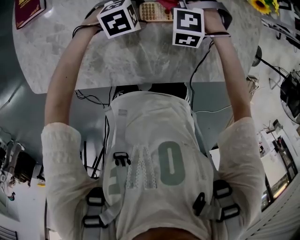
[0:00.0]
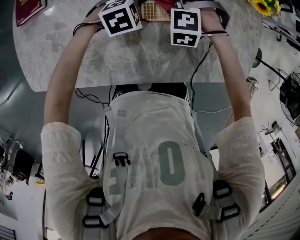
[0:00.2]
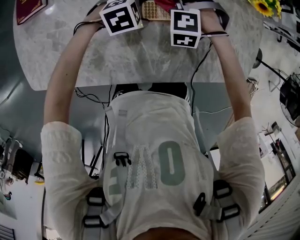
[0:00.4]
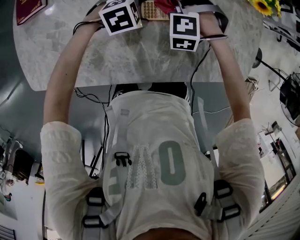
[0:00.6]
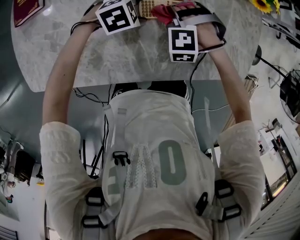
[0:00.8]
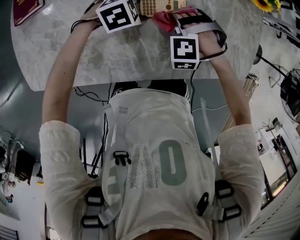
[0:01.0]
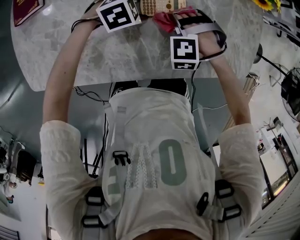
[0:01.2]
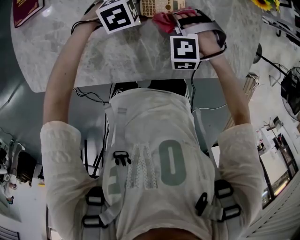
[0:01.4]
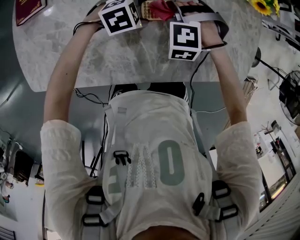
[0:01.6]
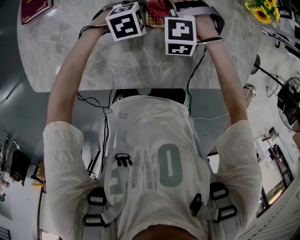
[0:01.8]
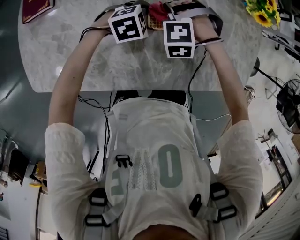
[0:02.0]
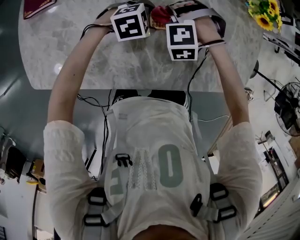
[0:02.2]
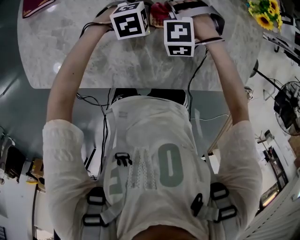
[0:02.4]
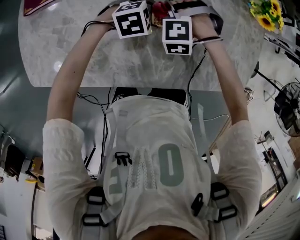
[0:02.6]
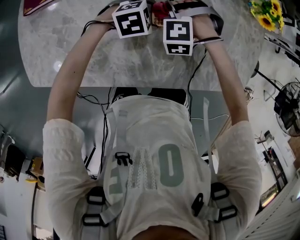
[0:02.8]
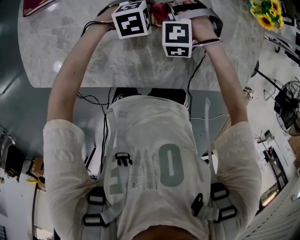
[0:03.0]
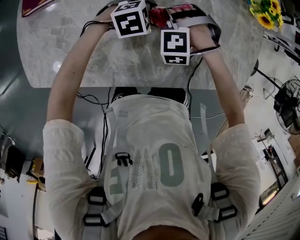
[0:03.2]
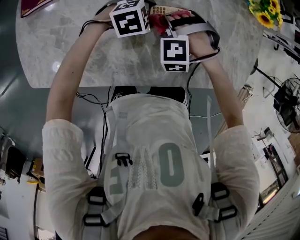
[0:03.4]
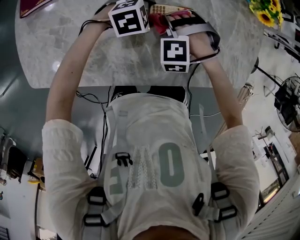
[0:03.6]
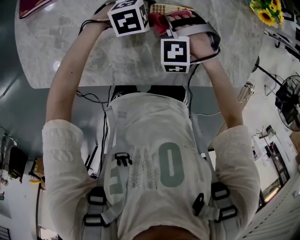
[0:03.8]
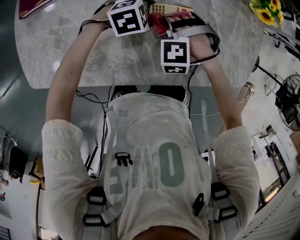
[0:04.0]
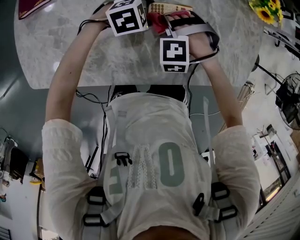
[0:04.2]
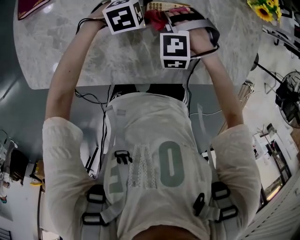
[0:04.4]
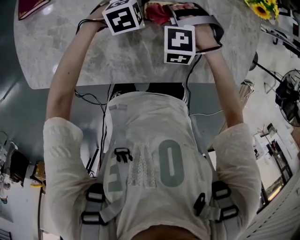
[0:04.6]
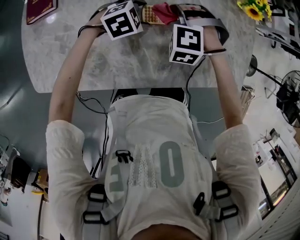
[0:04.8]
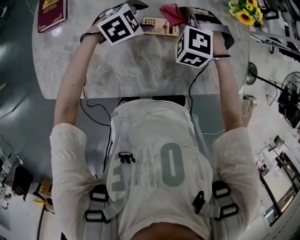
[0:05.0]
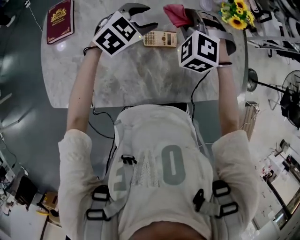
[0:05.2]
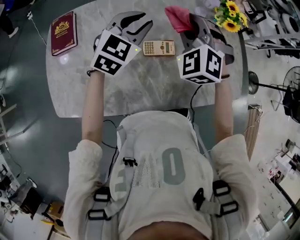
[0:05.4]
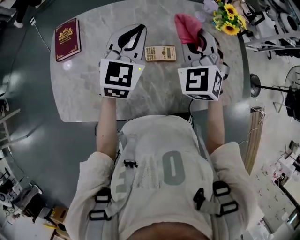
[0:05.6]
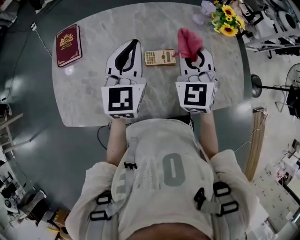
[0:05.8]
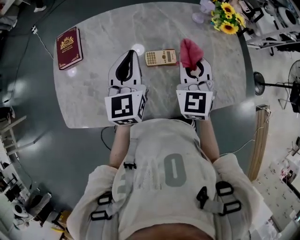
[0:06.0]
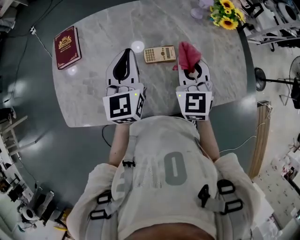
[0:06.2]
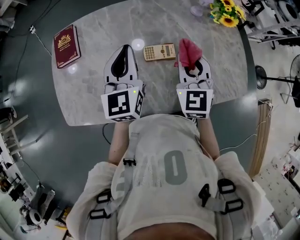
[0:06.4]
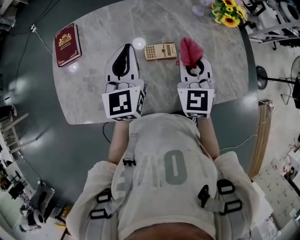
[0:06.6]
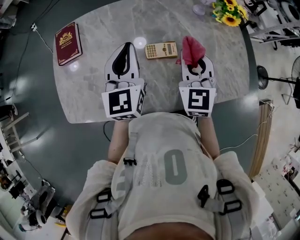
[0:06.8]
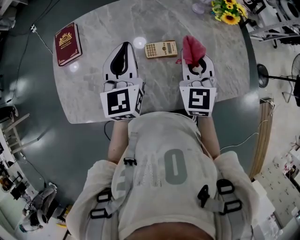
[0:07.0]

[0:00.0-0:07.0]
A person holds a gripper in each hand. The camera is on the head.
0:00.0 to 0:01.4: The right gripper shifts approximately 10 cm backward and to the right.
0:01.4 to 0:02.8: The right gripper heads to the left, covering approximately 10 cm.
0:02.8 to 0:04.2: The right gripper ends up some 5 cm from where it was.
0:04.2 to 0:05.6: The two grippers go approximately 30 cm upward. The left gripper angles its fingers upward, by some 40 degrees, and closes up; the right gripper tilts its fingers about 50 degrees upward.
0:05.6 to 0:07.0: The left gripper ends up approximately 5 cm from where it was, and changes its angle by about 20 degrees, while the right gripper goes some 10 cm backward and downward, and rotates about 30 degrees.

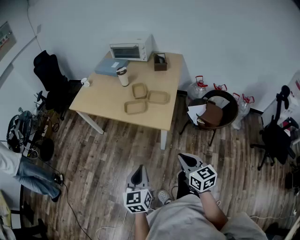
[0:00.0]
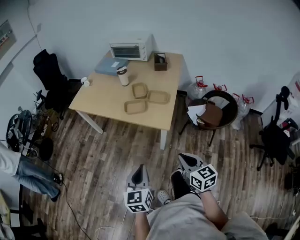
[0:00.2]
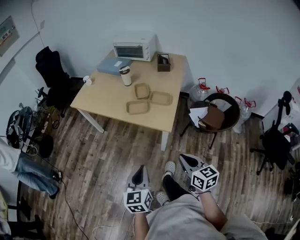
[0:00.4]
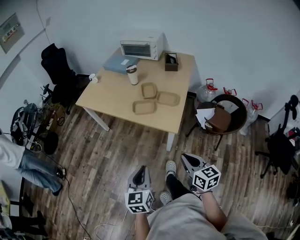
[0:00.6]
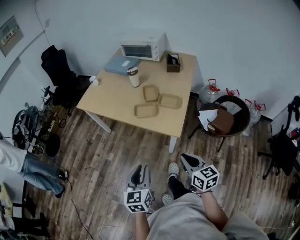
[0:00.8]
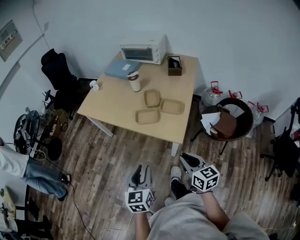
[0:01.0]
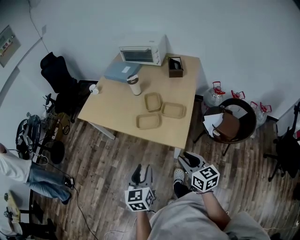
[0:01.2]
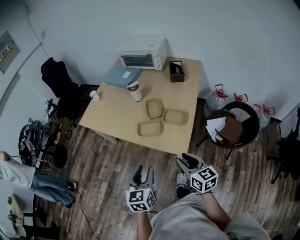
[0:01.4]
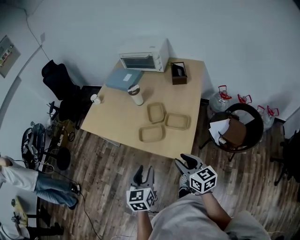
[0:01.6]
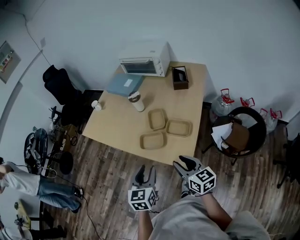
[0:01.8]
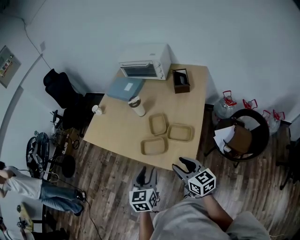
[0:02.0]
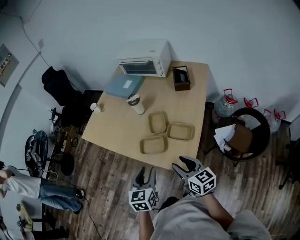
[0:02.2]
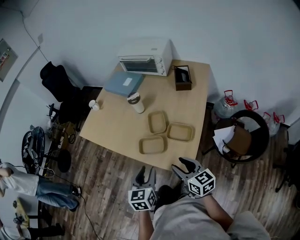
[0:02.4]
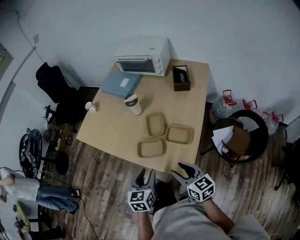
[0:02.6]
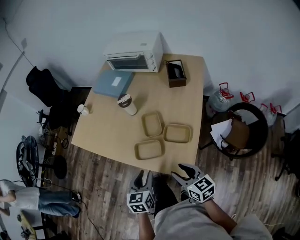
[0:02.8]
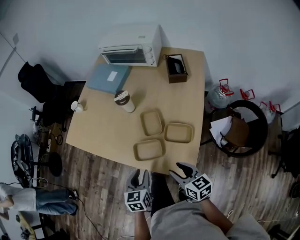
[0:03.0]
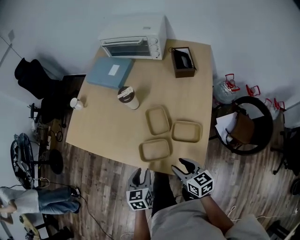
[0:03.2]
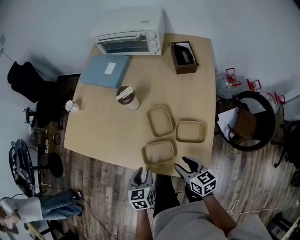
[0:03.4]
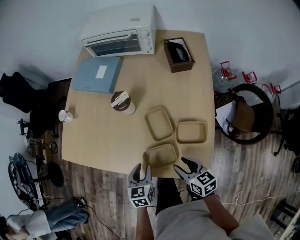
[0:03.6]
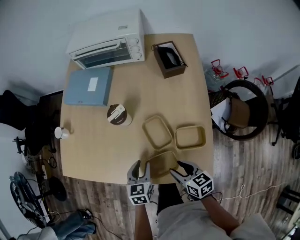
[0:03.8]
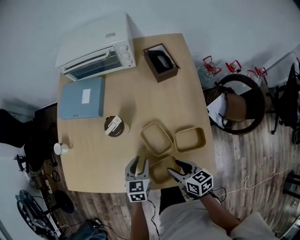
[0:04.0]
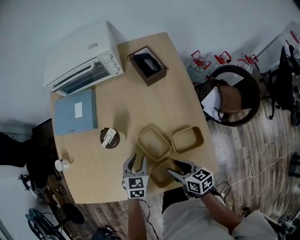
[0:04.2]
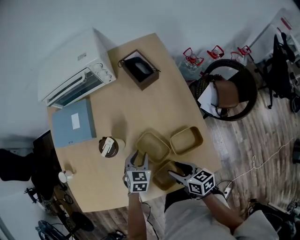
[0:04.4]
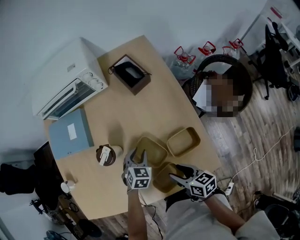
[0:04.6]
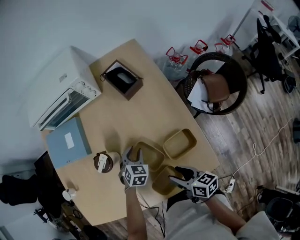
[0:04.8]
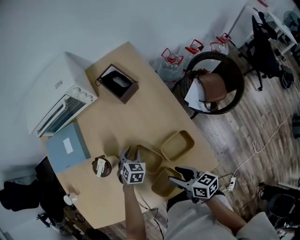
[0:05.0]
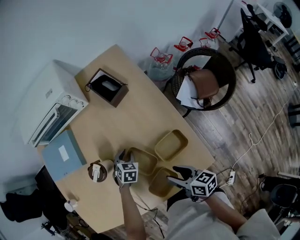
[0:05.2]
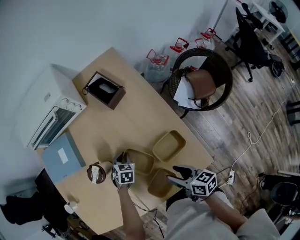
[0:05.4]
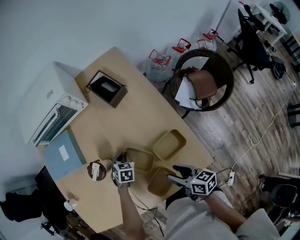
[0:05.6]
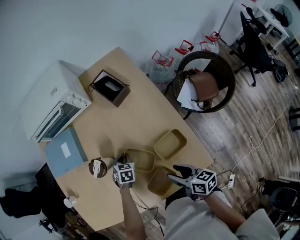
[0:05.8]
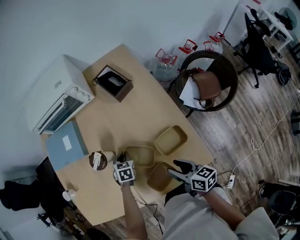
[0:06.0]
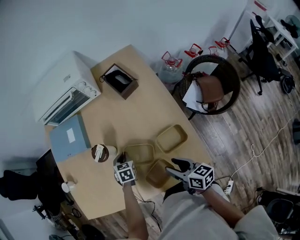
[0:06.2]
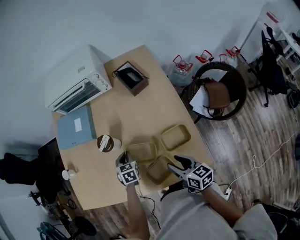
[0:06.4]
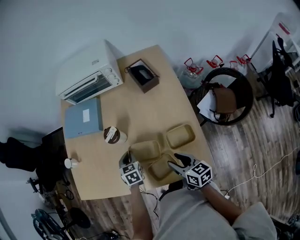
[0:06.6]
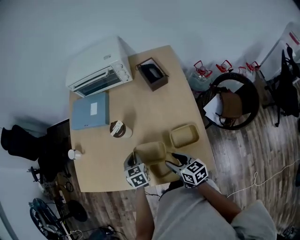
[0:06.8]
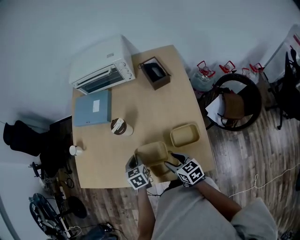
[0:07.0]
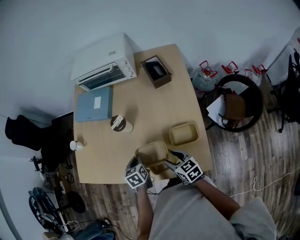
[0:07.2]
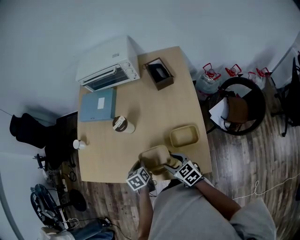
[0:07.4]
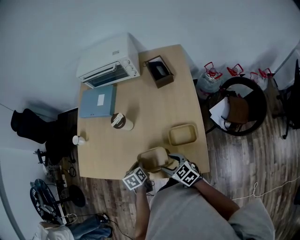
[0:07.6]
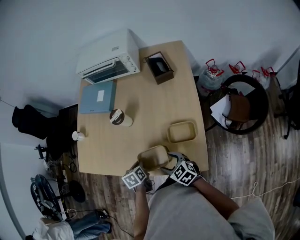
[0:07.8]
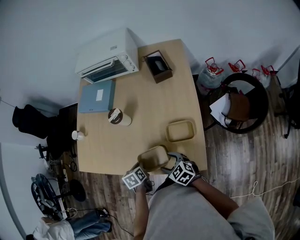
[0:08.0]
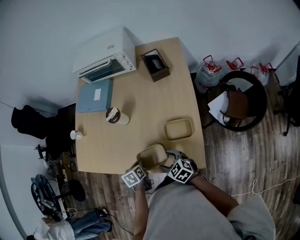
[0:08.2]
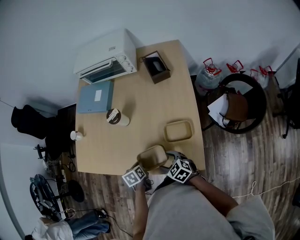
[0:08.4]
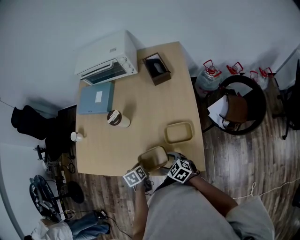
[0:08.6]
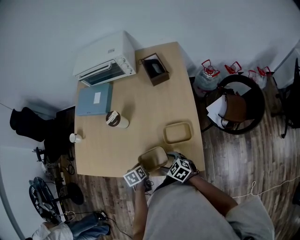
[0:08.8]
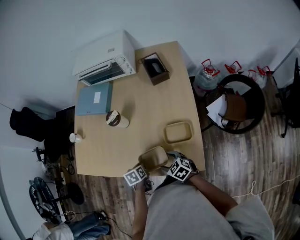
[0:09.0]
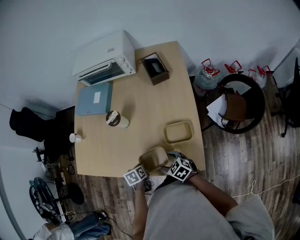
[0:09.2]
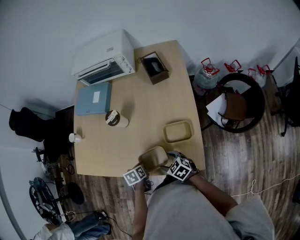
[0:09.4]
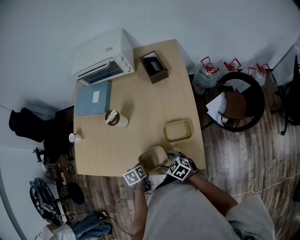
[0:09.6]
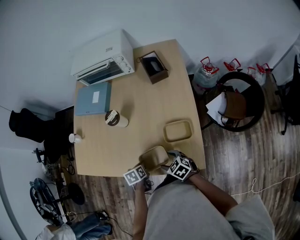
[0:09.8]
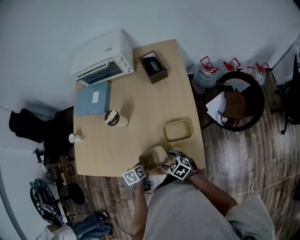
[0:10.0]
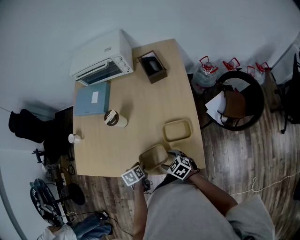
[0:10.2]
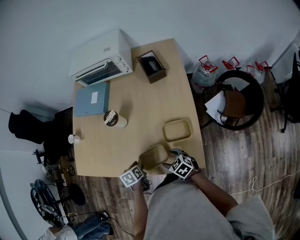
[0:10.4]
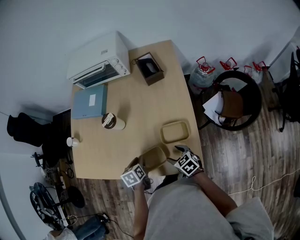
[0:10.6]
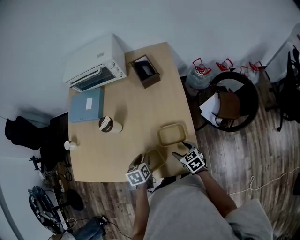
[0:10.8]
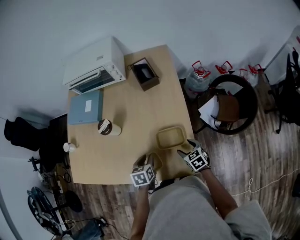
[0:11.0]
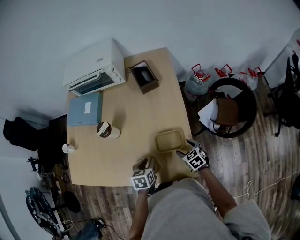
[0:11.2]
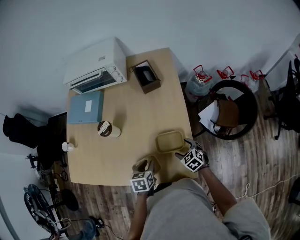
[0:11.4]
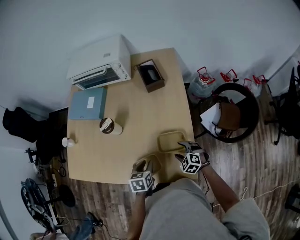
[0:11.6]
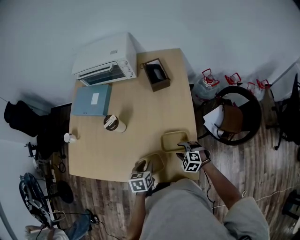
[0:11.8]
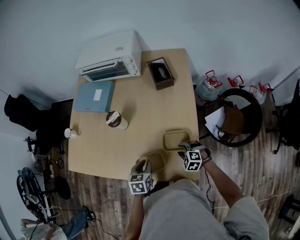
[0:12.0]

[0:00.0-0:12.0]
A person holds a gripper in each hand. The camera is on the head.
0:00.0 to 0:01.6: The grippers both shift forward by roughly 25 cm. The right gripper opens, while the left gripper opens its fingers.
0:01.6 to 0:03.0: Both grippers move forward and downward, approximately 20 cm.
0:03.0 to 0:04.4: The left gripper changes place by approximately 30 cm, and turns by some 50 degrees; the right gripper moves roughly 20 cm, and turns by roughly 30 degrees.
0:04.4 to 0:06.0: The left gripper closes up. Meanwhile the right gripper moves to the right, some 5 cm.
0:06.0 to 0:07.6: The left gripper ends up approximately 20 cm from where it was, and twists some 50 degrees counterclockwise, seen from behind; the right gripper ends up roughly 10 cm from where it was, and twists about 50 degrees counterclockwise, seen from behind.
0:07.6 to 0:09.0: The grippers both shift downward by approximately 5 cm.
0:09.0 to 0:10.4: The left gripper opens.
0:10.4 to 0:12.0: The left gripper moves to the right and upward, about 10 cm, and rotates roughly 20 degrees. Meanwhile the right gripper goes approximately 10 cm to the right and forward, turns by approximately 40 degrees, and closes.

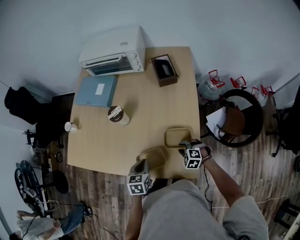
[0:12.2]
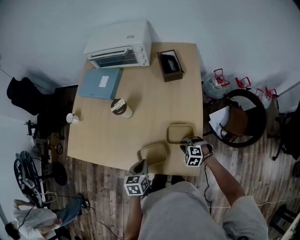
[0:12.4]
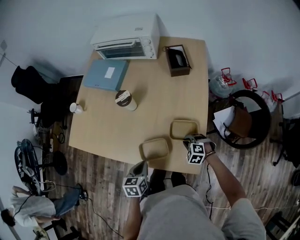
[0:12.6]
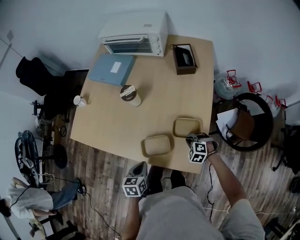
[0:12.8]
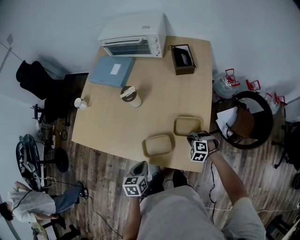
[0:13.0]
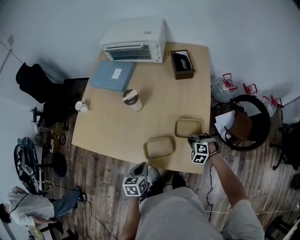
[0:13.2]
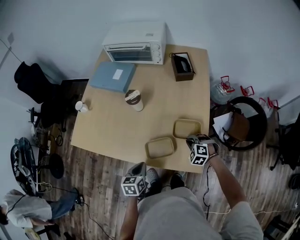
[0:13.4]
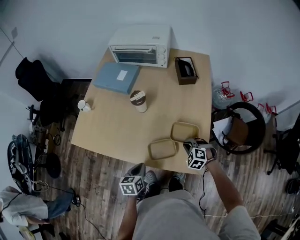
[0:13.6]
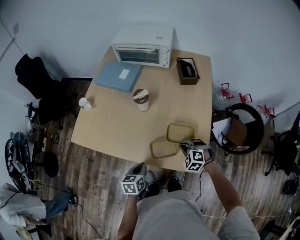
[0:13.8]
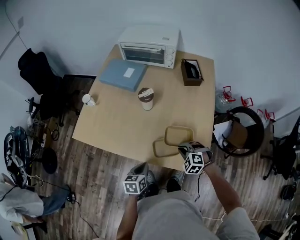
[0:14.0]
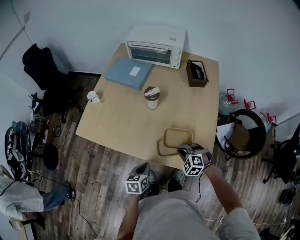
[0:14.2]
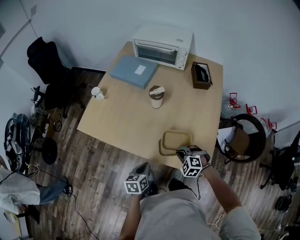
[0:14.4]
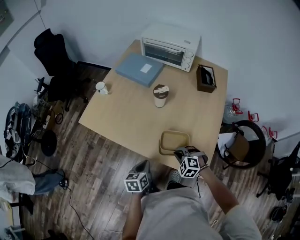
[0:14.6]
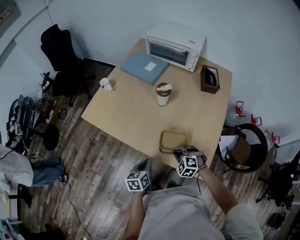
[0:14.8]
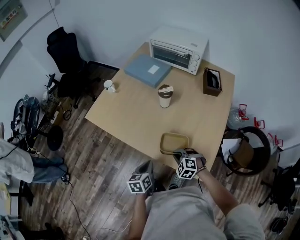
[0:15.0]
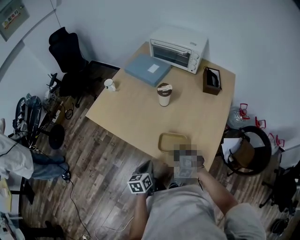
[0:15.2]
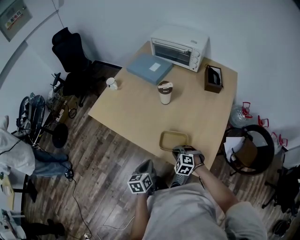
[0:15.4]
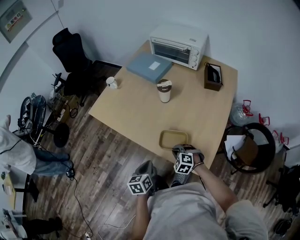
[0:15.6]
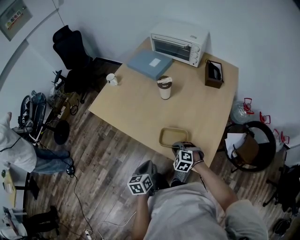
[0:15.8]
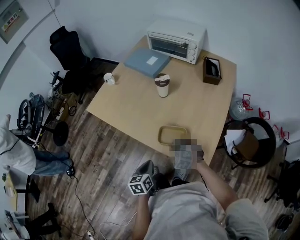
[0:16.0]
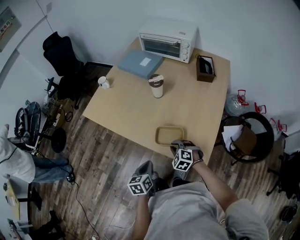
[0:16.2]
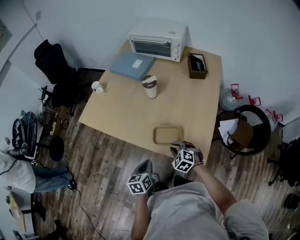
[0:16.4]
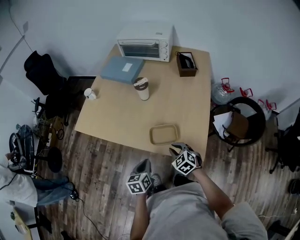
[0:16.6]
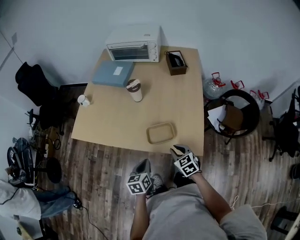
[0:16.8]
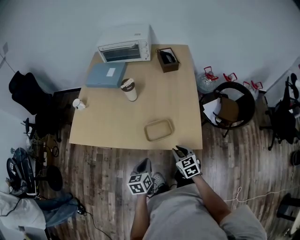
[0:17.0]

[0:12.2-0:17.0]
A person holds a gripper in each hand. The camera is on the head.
0:12.2 to 0:13.8: The right gripper shifts about 10 cm to the left and upward; the left gripper shifts approximately 15 cm to the left and backward.
0:13.8 to 0:15.4: The left gripper is displaced backward by some 5 cm, and swivels roughly 20 degrees; the right gripper is displaced to the left and backward by about 10 cm.
0:15.4 to 0:17.0: The left gripper rotates roughly 30 degrees; the right gripper ends up some 10 cm from where it was, and rolls clockwise, seen from behind, by some 60 degrees.
